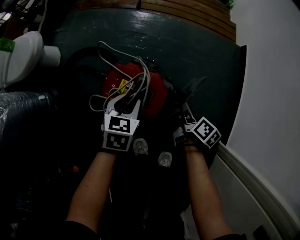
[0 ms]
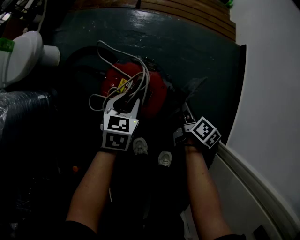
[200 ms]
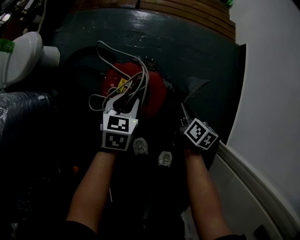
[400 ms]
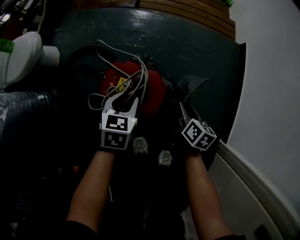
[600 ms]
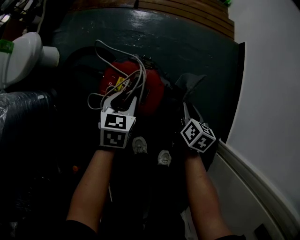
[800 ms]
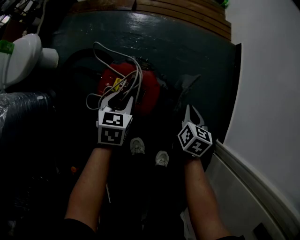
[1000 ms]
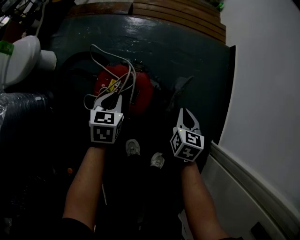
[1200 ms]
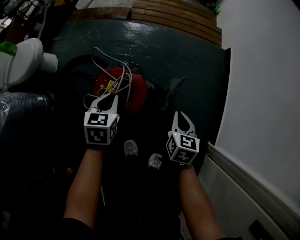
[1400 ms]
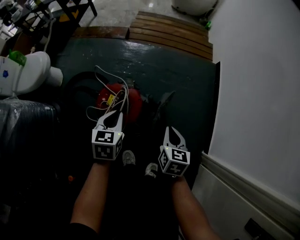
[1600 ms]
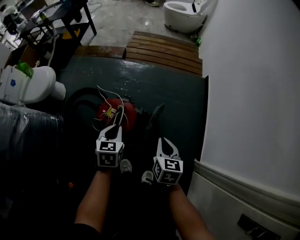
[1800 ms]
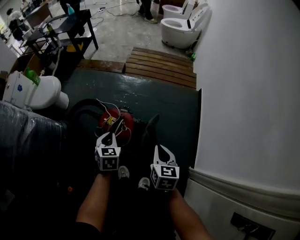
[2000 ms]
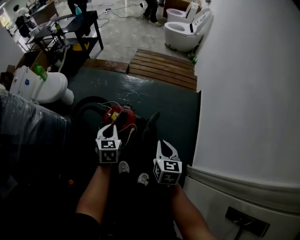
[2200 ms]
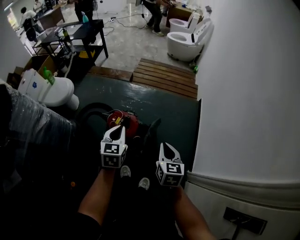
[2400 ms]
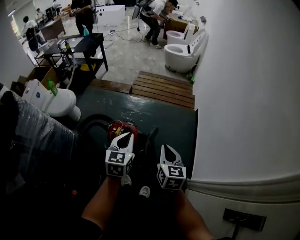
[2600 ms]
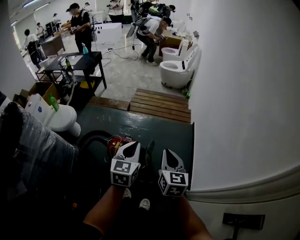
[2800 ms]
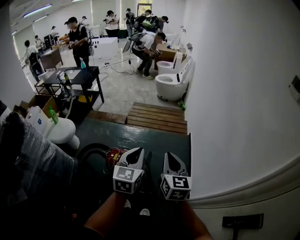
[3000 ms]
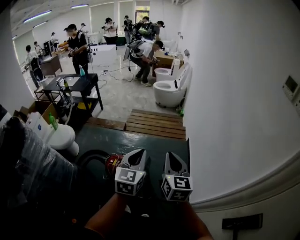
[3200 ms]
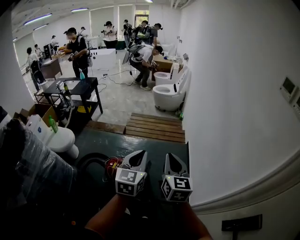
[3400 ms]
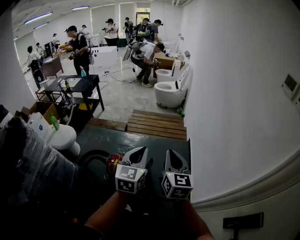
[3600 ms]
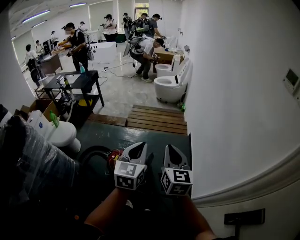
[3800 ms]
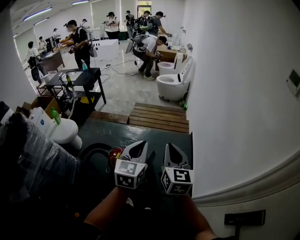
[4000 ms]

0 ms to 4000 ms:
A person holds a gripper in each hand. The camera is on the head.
0 ms to 1400 ms: The right gripper heads upward, covering some 10 cm, rolls counterclockwise, seen from behind, by about 40 degrees, and opens, then closes again. Meanwhile the left gripper travels upward by some 5 cm, and closes.
1400 ms to 2600 ms: The two grippers go some 40 cm upward. The left gripper changes its angle by some 20 degrees. Meanwhile the right gripper changes its angle by some 20 degrees.
2600 ms to 4000 ms: The left gripper goes about 20 cm upward and to the right, while the right gripper heads upward, covering approximately 15 cm, and changes its angle by roughly 20 degrees.

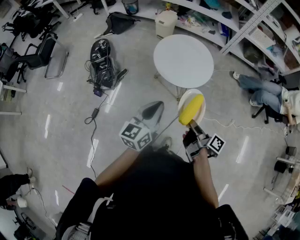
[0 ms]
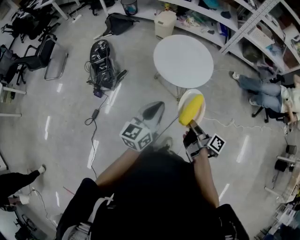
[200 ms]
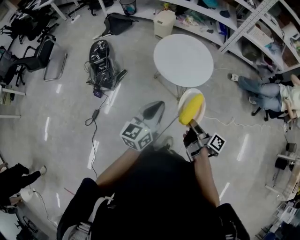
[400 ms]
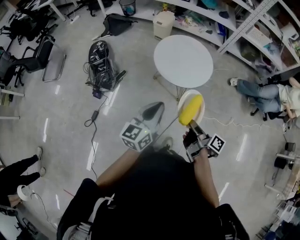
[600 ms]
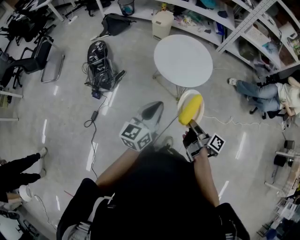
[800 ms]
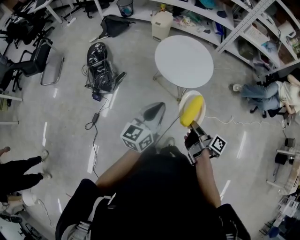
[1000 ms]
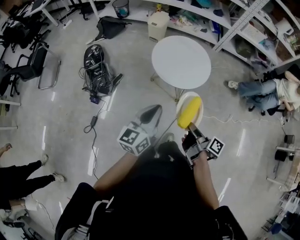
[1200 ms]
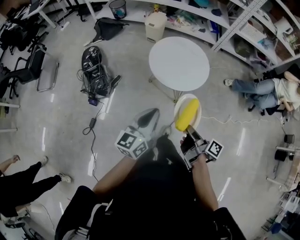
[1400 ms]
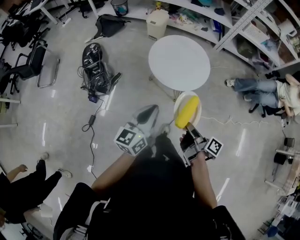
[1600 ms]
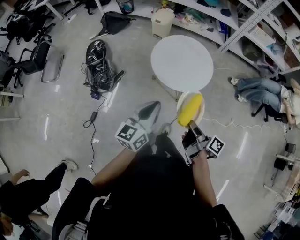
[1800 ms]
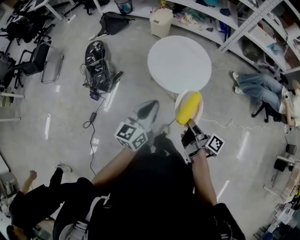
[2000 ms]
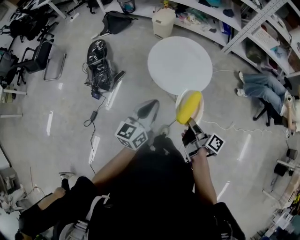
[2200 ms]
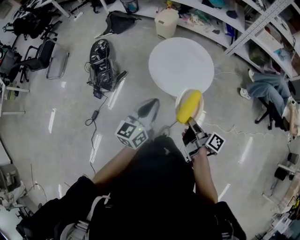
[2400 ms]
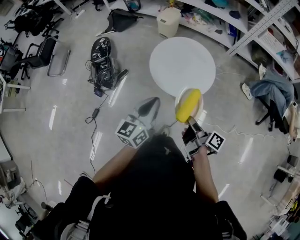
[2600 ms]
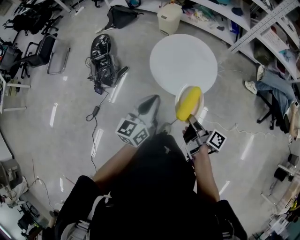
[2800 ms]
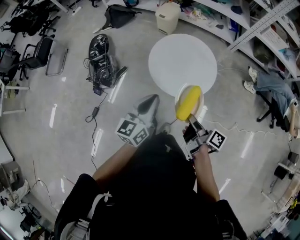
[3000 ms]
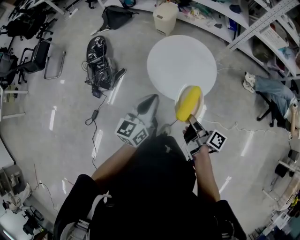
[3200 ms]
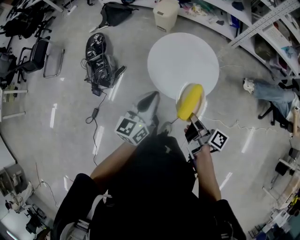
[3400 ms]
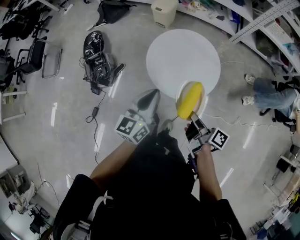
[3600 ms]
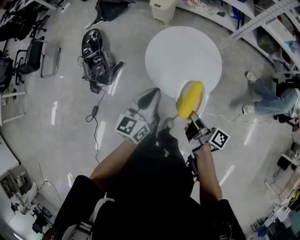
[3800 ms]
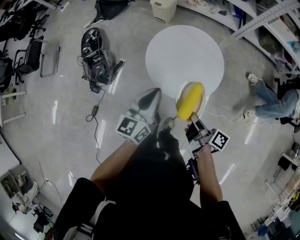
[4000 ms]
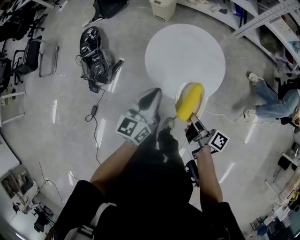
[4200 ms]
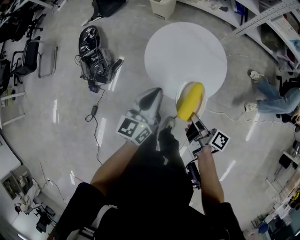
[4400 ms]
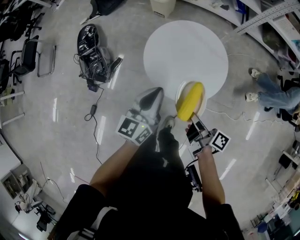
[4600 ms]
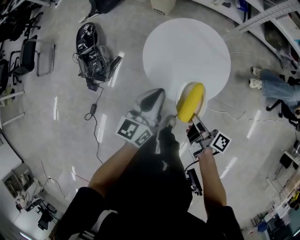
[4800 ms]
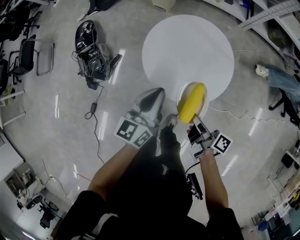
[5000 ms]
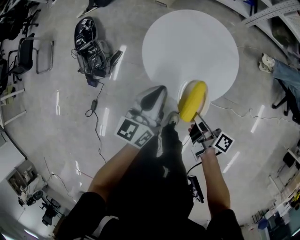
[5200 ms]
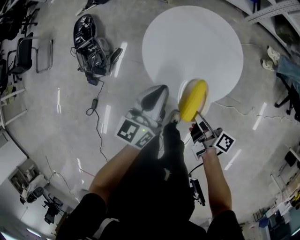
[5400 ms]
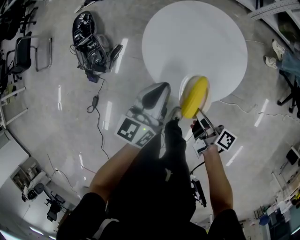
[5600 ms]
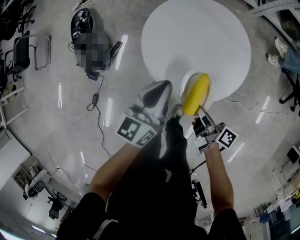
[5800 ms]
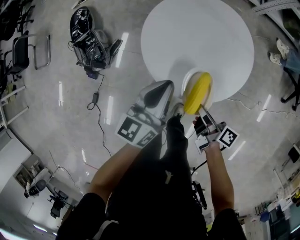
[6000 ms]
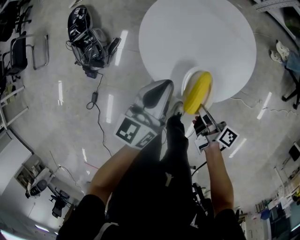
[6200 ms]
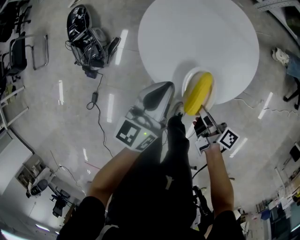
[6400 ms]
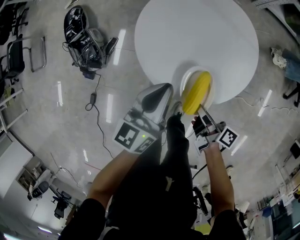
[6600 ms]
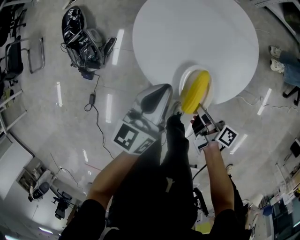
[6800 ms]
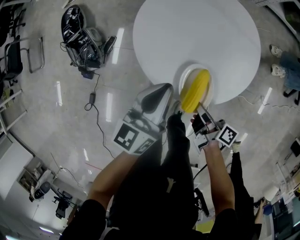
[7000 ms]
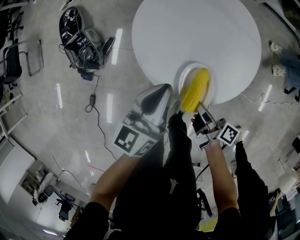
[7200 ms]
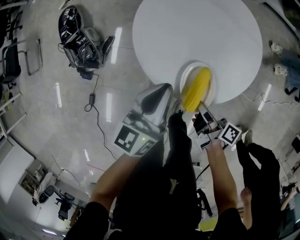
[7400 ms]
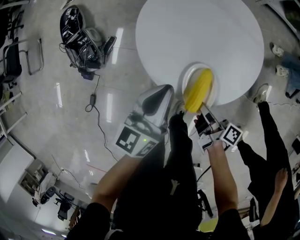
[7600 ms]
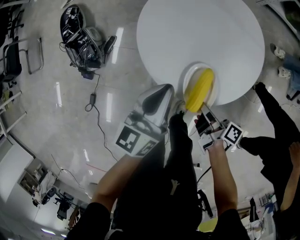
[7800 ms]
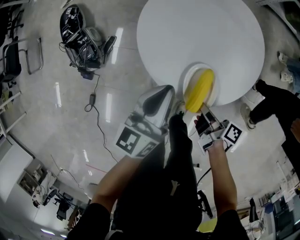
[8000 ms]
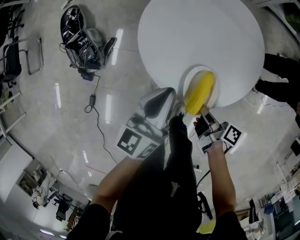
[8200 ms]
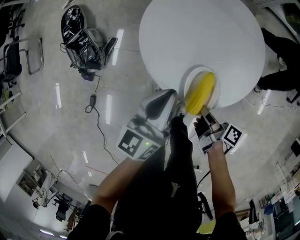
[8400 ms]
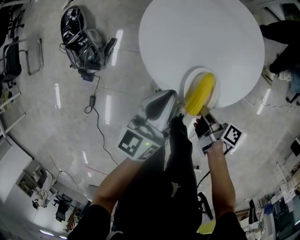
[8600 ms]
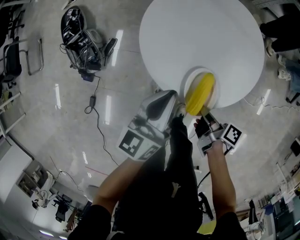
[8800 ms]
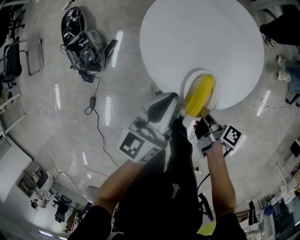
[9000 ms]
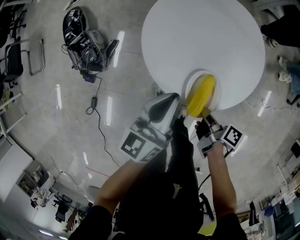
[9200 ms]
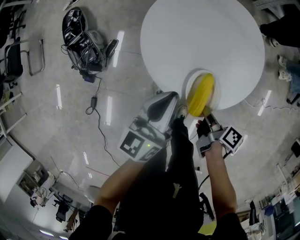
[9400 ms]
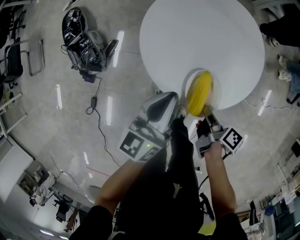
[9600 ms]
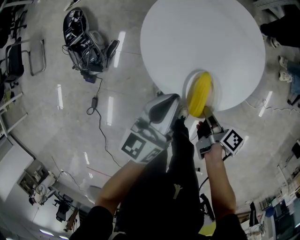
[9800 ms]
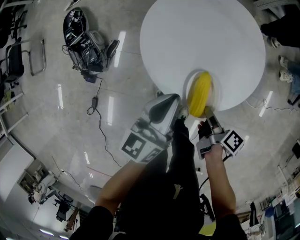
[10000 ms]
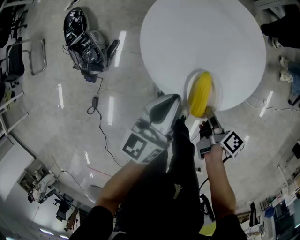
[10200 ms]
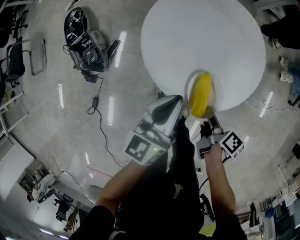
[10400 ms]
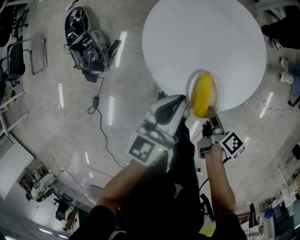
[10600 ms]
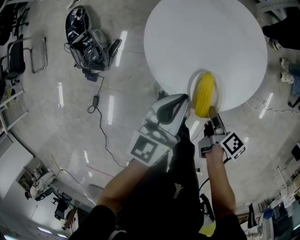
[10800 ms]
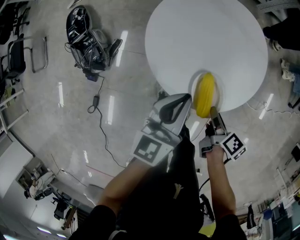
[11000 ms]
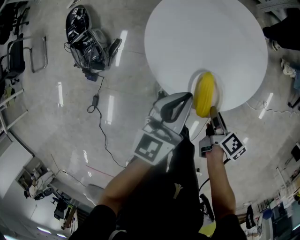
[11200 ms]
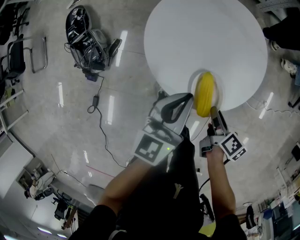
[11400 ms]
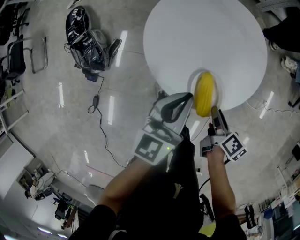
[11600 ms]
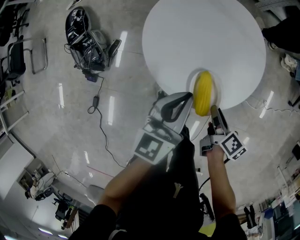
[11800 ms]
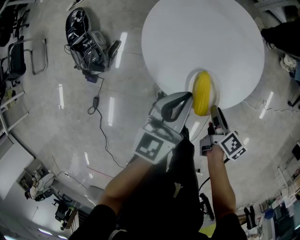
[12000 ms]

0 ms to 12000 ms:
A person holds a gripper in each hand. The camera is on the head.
1600 ms to 3000 ms: The left gripper changes place by roughly 15 cm.
3000 ms to 4400 ms: The left gripper changes place by approximately 15 cm.
4400 ms to 6000 ms: The left gripper heads downward, covering some 10 cm.

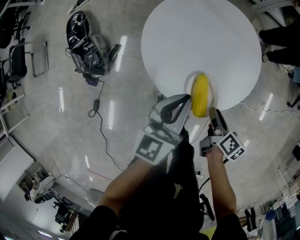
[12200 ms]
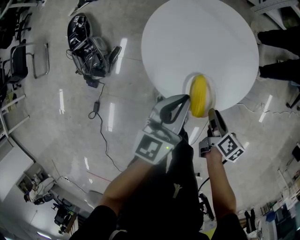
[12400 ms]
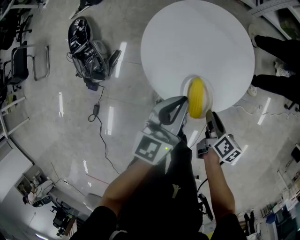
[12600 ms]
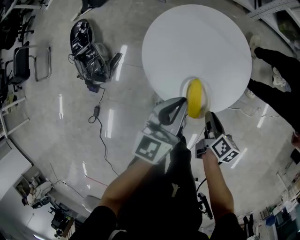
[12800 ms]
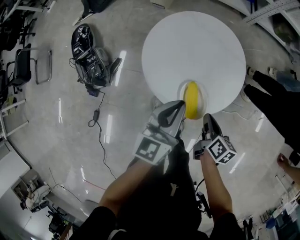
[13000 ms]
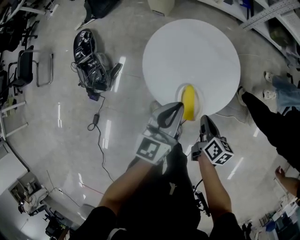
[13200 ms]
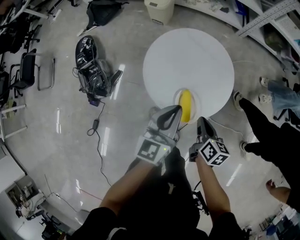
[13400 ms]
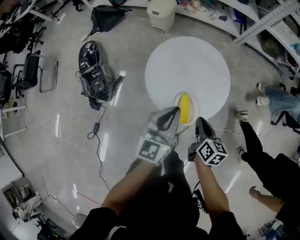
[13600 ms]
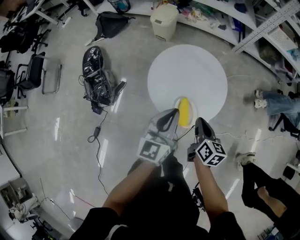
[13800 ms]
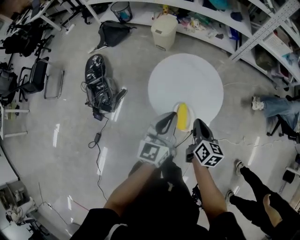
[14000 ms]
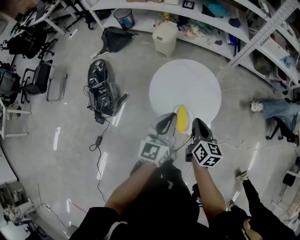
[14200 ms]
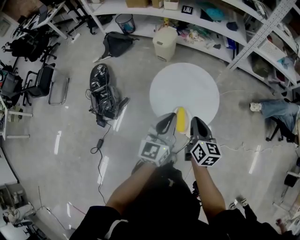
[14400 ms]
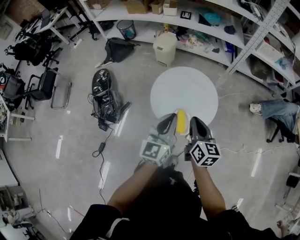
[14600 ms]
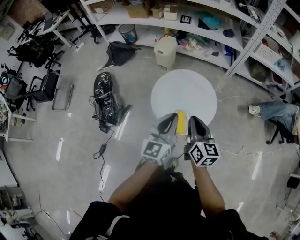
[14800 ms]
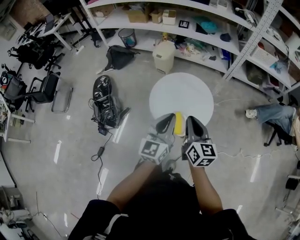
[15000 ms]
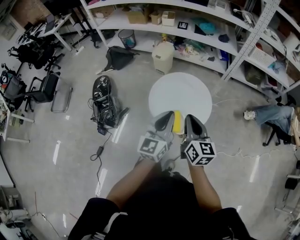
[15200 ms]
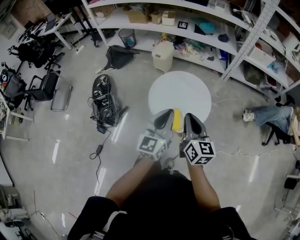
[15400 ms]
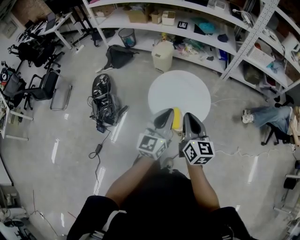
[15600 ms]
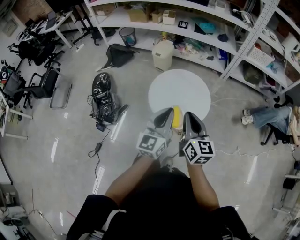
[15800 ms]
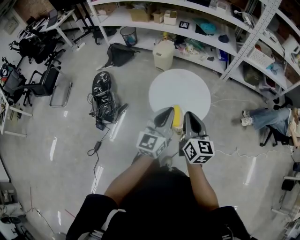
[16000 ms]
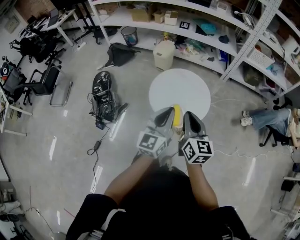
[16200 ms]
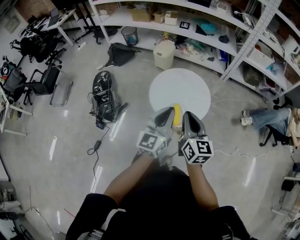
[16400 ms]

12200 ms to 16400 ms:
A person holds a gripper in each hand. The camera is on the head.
12200 ms to 13600 ms: The left gripper shifts roughly 10 cm upward.
13600 ms to 15000 ms: The left gripper moves upward, some 15 cm.
15000 ms to 16400 ms: The left gripper moves about 5 cm.

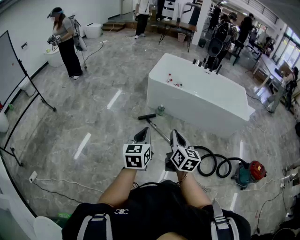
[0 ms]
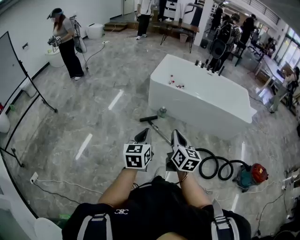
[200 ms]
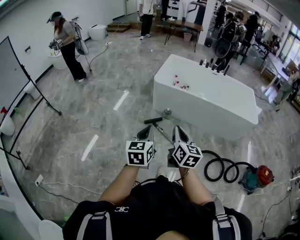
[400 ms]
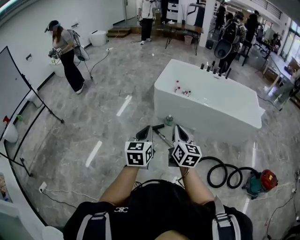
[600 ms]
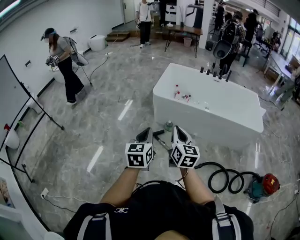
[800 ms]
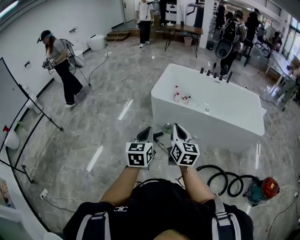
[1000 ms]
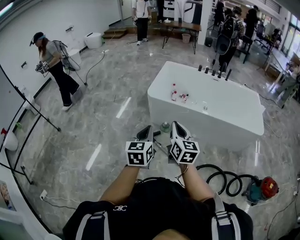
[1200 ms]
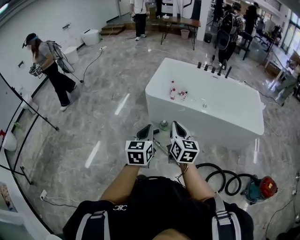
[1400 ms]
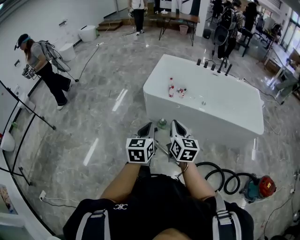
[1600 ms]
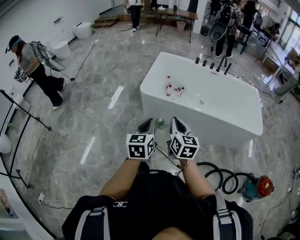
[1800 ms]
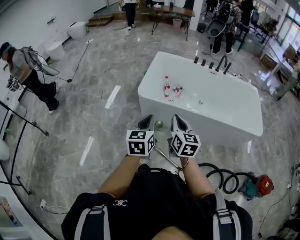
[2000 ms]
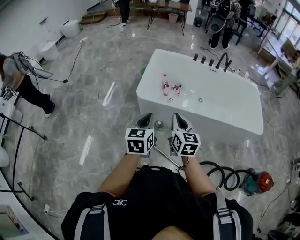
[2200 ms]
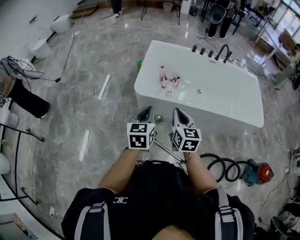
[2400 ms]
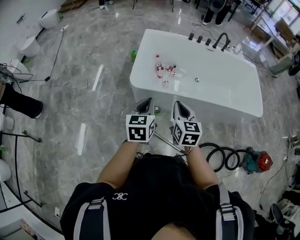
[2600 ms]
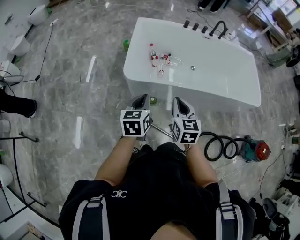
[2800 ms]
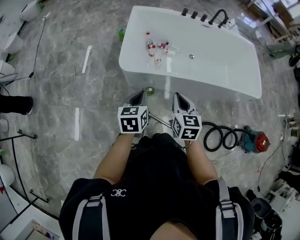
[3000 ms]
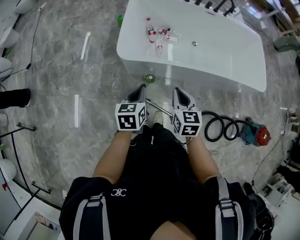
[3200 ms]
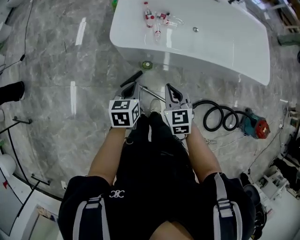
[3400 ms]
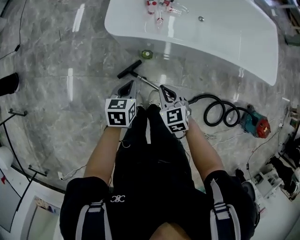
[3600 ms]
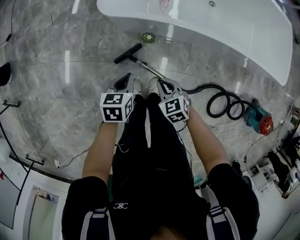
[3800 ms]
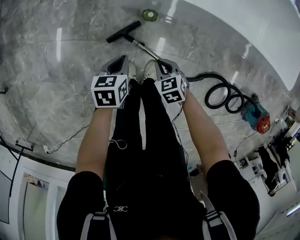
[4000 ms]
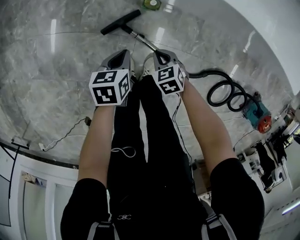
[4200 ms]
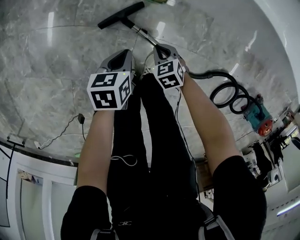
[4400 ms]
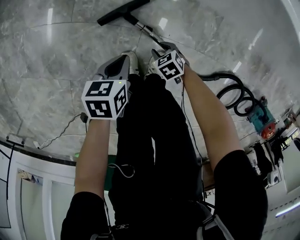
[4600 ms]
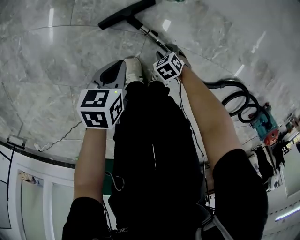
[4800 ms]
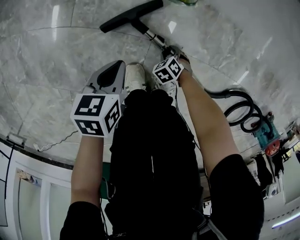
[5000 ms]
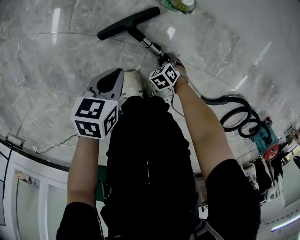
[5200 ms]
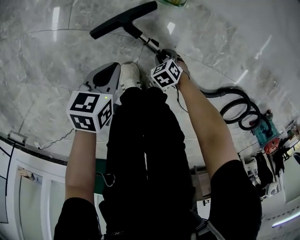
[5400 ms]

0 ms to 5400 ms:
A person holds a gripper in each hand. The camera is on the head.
0 ms to 1400 ms: The two grippers go roughly 35 cm forward.
1400 ms to 2800 ms: The grippers both shift forward by about 35 cm. The right gripper turns by roughly 20 degrees; the left gripper rotates about 20 degrees.
2800 ms to 4000 ms: Both grippers travel together downward, about 50 cm. The right gripper tilts its fingers approximately 30 degrees downward, while the left gripper rotates roughly 30 degrees.
4000 ms to 5400 ms: The right gripper is displaced downward by some 40 cm, turns by roughly 20 degrees, and opens. Meanwhile the left gripper shifts about 25 cm downward.
